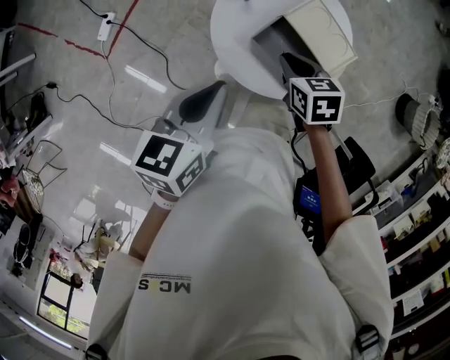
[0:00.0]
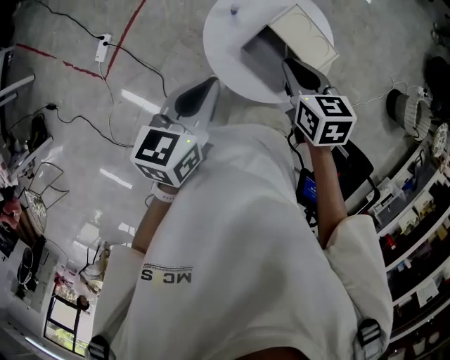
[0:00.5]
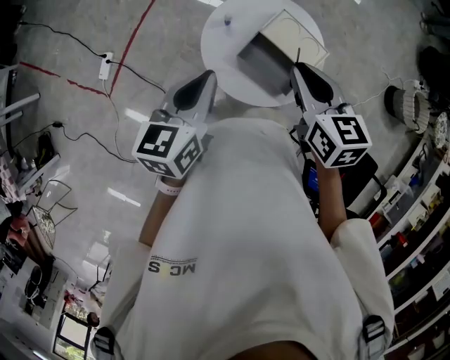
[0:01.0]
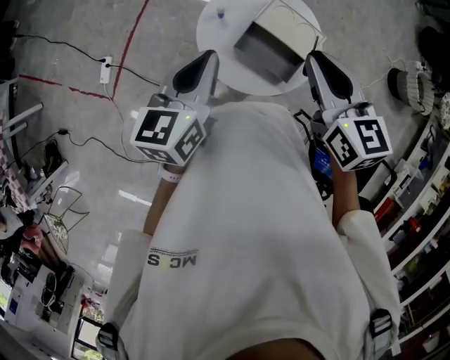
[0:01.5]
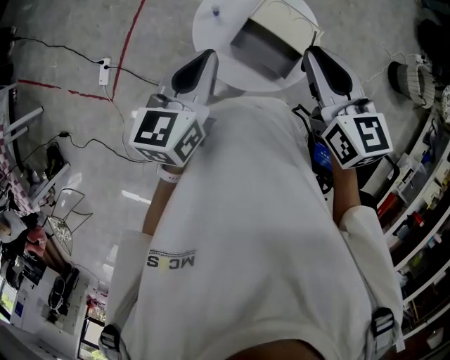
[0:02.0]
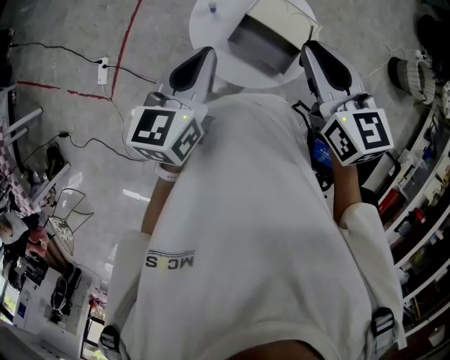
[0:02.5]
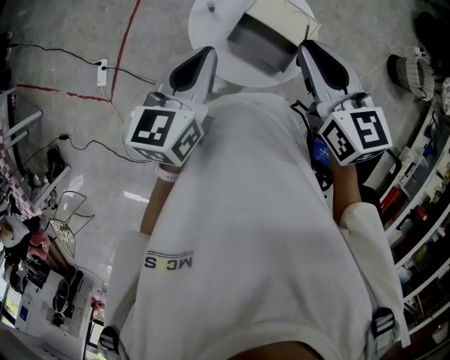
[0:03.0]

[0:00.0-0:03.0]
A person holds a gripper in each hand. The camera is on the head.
0:00.0 to 0:01.5: The left gripper shifts some 10 cm upward, while the right gripper travels upward by approximately 25 cm, and rotates some 30 degrees.
0:01.5 to 0:03.0: The grippers move only a little.

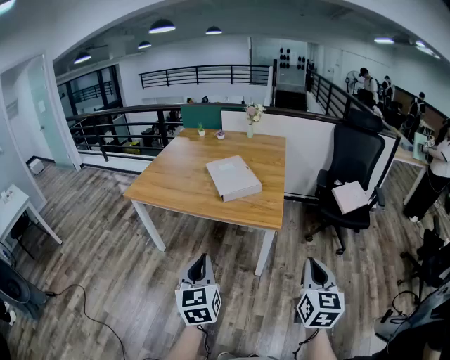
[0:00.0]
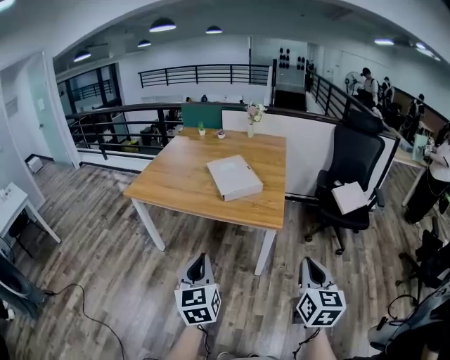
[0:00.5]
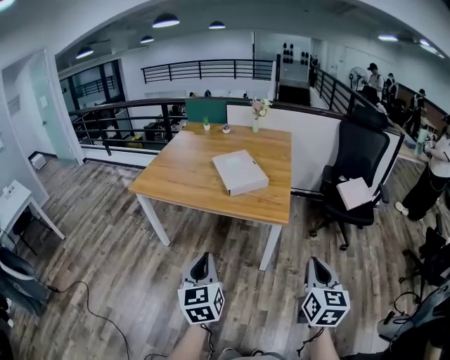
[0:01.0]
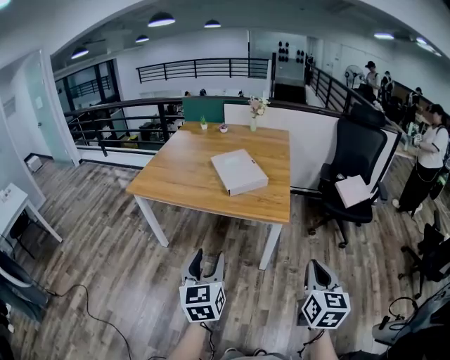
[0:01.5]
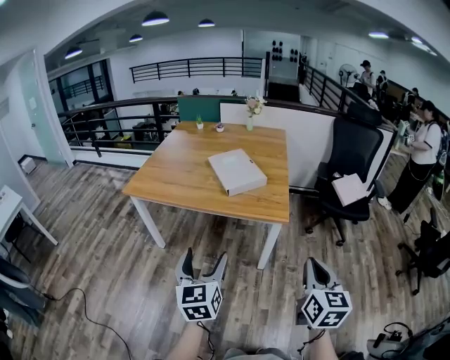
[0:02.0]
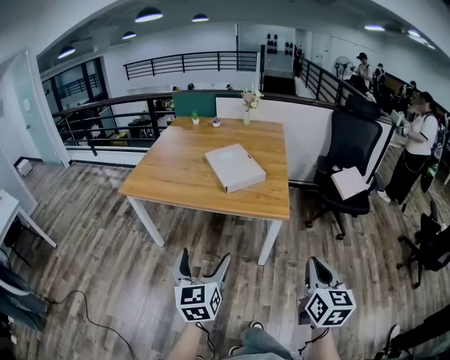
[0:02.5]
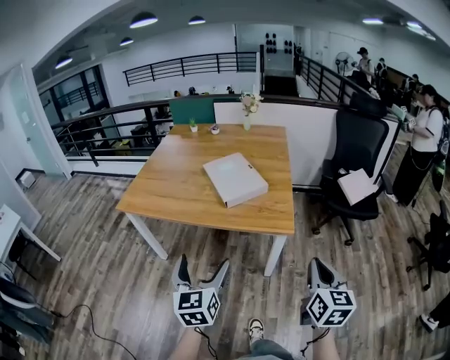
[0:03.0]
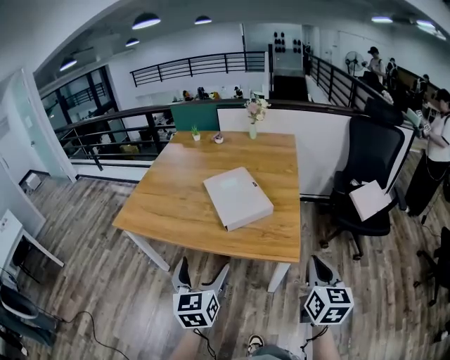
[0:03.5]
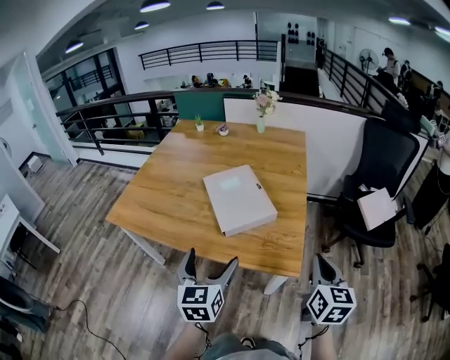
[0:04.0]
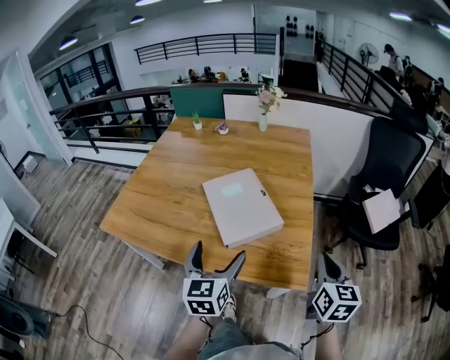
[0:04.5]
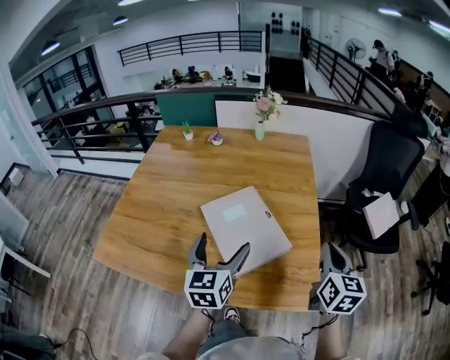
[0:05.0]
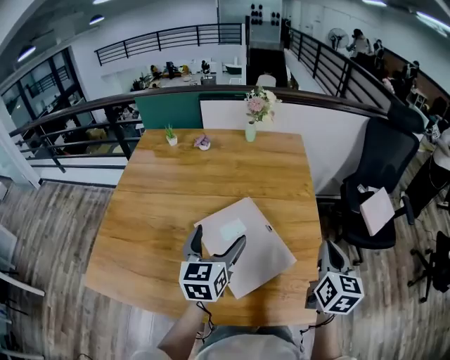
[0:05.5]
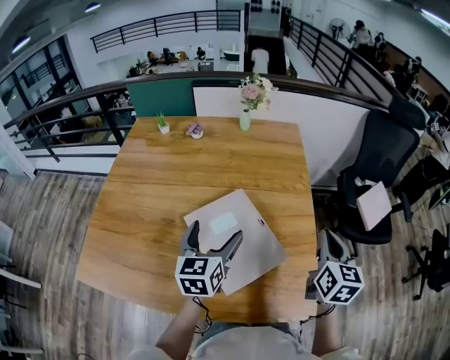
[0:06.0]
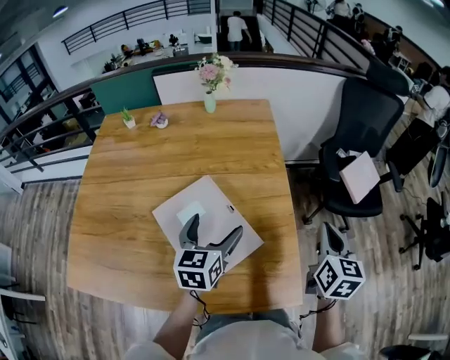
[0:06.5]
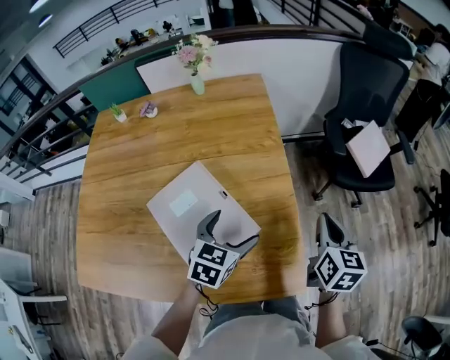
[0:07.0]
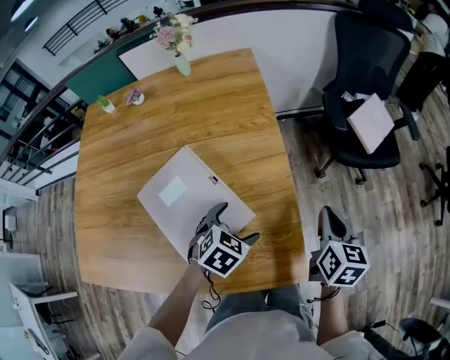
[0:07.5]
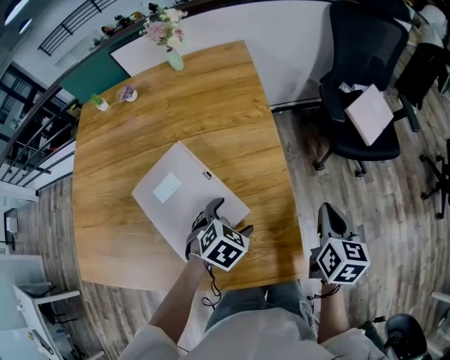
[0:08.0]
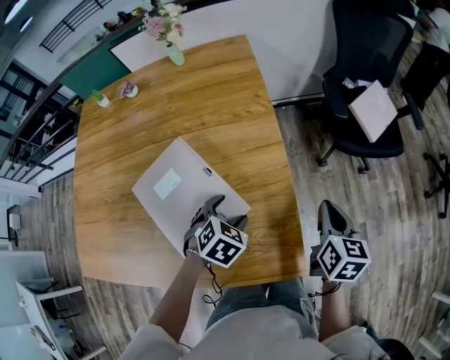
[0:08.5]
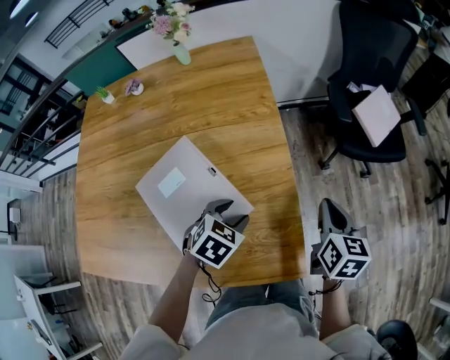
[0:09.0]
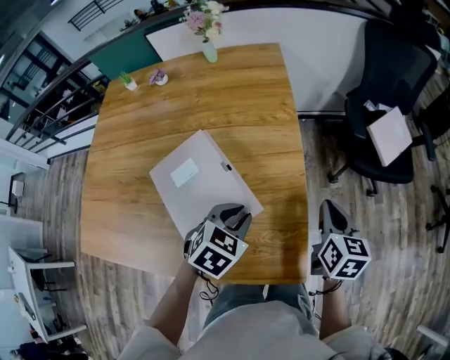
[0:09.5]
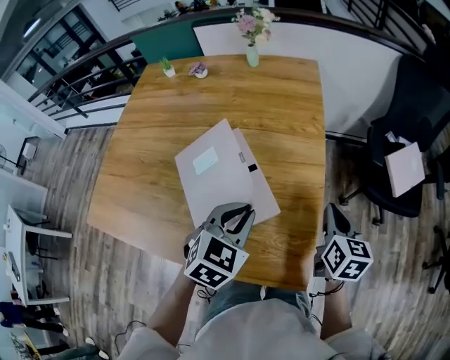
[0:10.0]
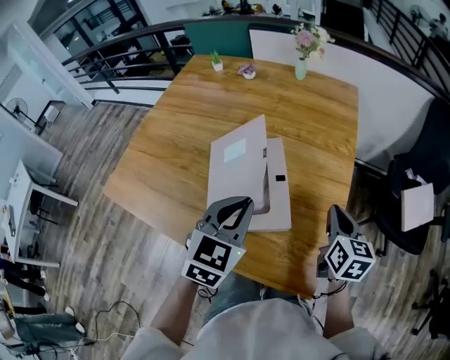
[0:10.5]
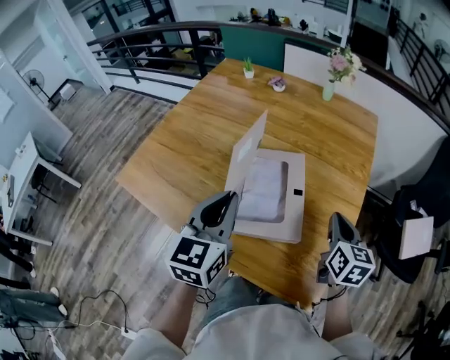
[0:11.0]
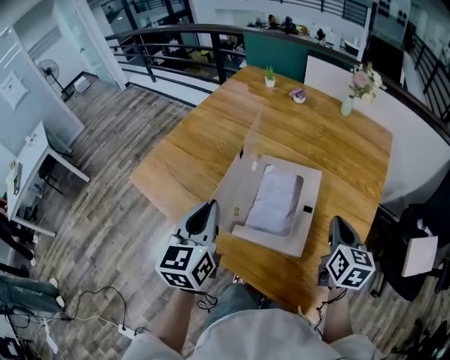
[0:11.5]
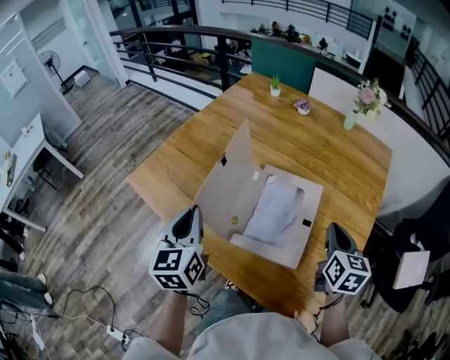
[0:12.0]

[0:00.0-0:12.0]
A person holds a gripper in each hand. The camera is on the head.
0:00.0 to 0:02.0: The two grippers go roughly 5 cm to the left. The left gripper opens up.
0:02.0 to 0:04.0: The grippers both shift forward by approximately 35 cm.
0:04.0 to 0:06.0: Both grippers travel together forward, about 30 cm.
0:06.0 to 0:08.0: The grippers both shift to the right and downward by about 25 cm. The left gripper tilts its fingers approximately 50 degrees downward.
0:08.0 to 0:10.0: The left gripper travels upward by about 15 cm, turns by approximately 30 degrees, and closes up; the right gripper shifts roughly 10 cm to the left.
0:10.0 to 0:12.0: The right gripper ends up roughly 25 cm from where it was, and swivels about 20 degrees; the left gripper ends up approximately 35 cm from where it was, and swivels some 70 degrees.

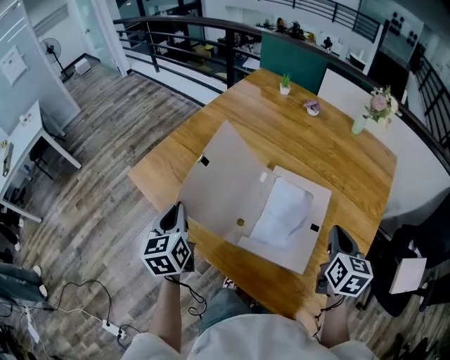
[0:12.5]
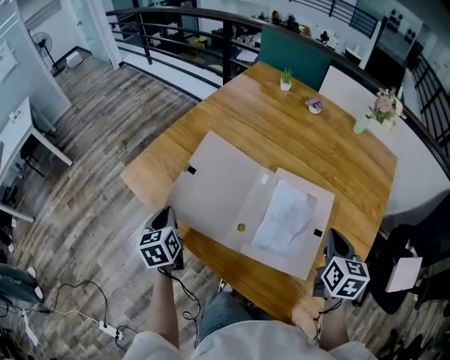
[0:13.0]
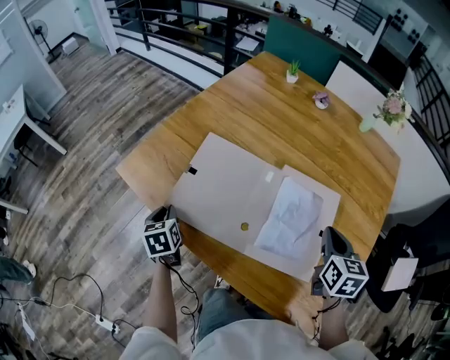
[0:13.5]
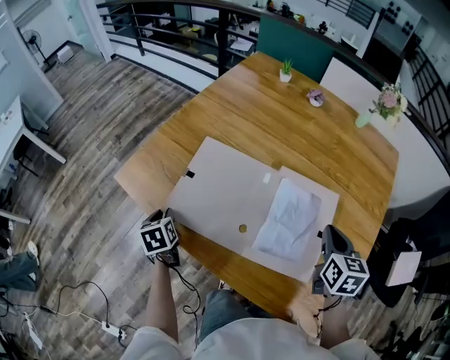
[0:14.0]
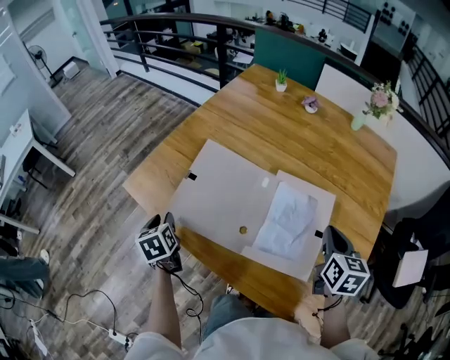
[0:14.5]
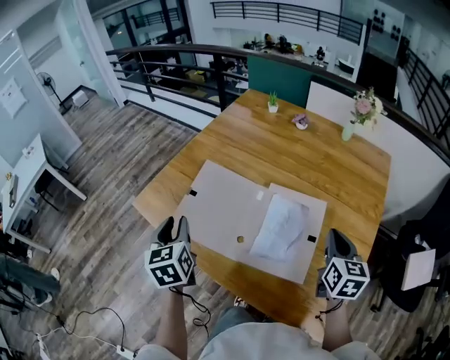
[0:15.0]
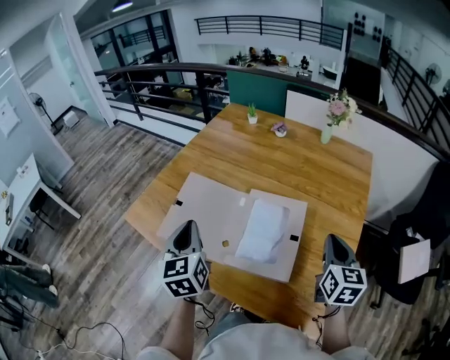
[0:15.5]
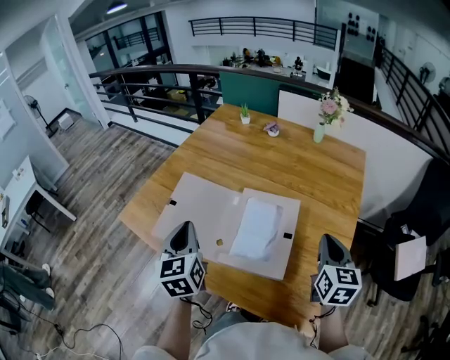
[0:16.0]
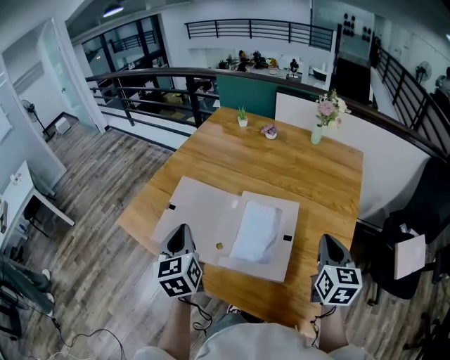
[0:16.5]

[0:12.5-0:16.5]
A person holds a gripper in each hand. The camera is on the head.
0:12.5 to 0:14.5: The left gripper travels downward and to the left by approximately 15 cm, and rotates roughly 20 degrees.
0:14.5 to 0:16.5: The right gripper is displaced to the right, backward and upward by approximately 15 cm, while the left gripper is displaced to the right and upward by approximately 25 cm, and swivels some 30 degrees.

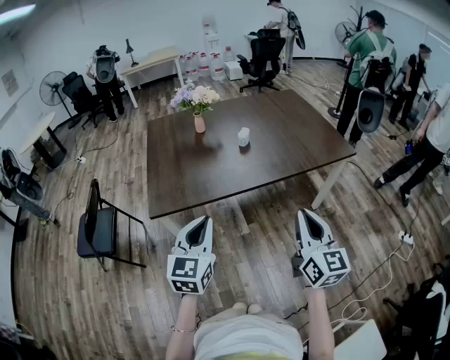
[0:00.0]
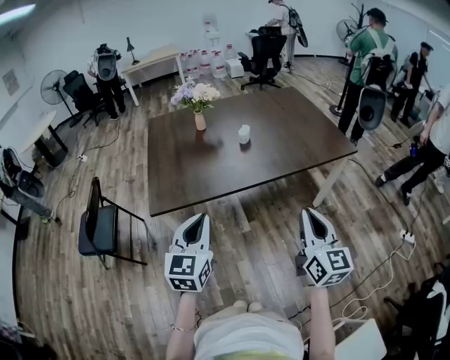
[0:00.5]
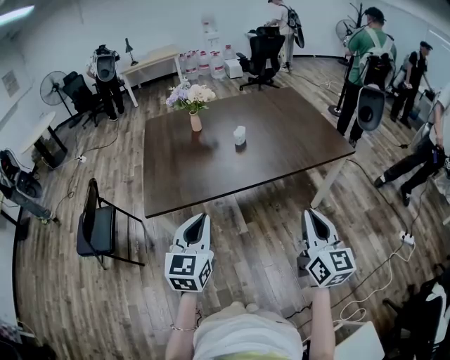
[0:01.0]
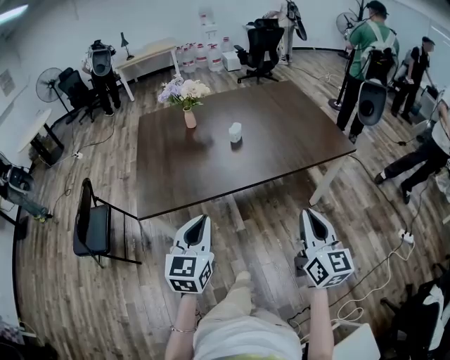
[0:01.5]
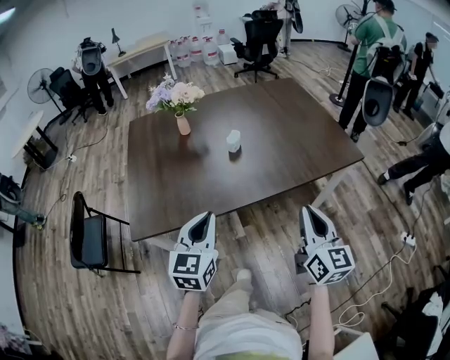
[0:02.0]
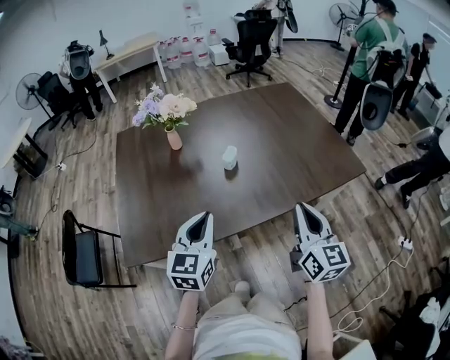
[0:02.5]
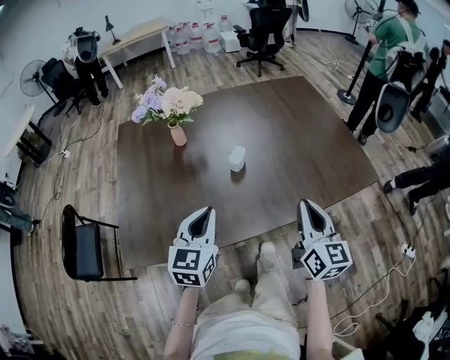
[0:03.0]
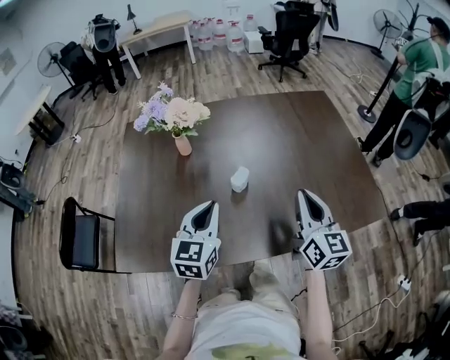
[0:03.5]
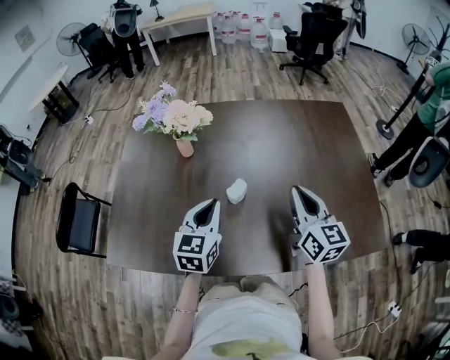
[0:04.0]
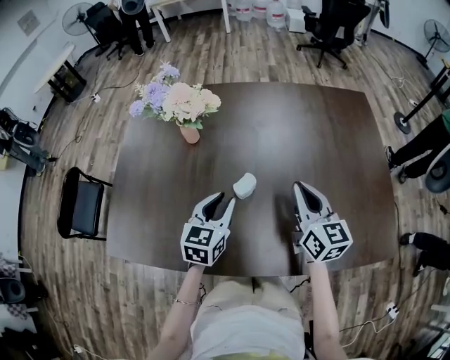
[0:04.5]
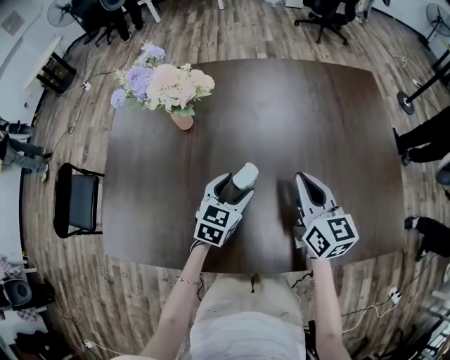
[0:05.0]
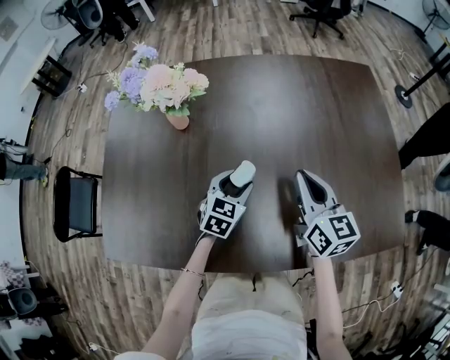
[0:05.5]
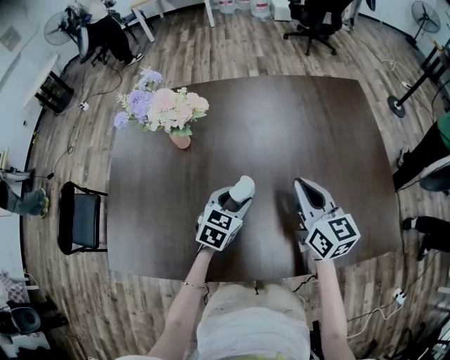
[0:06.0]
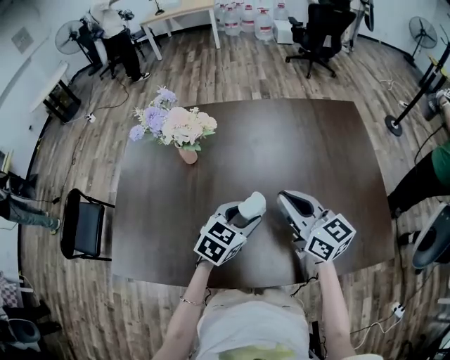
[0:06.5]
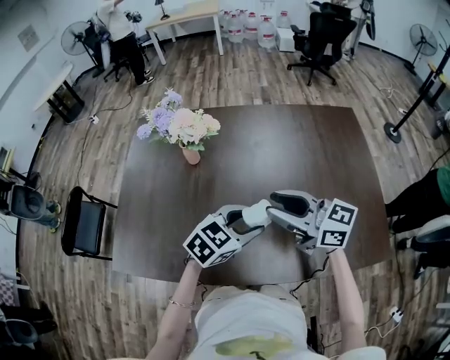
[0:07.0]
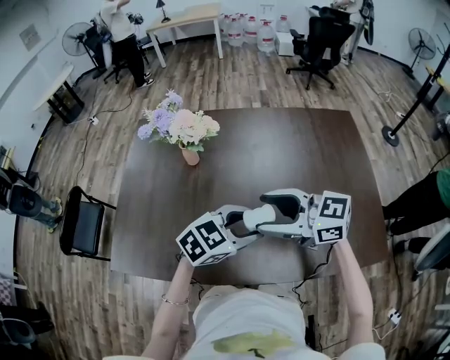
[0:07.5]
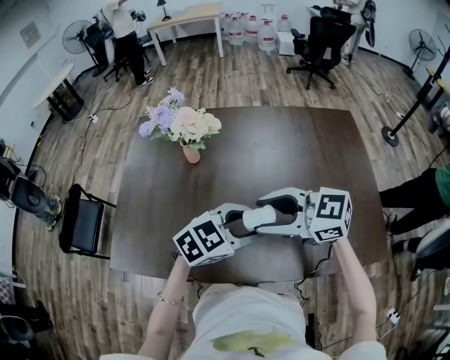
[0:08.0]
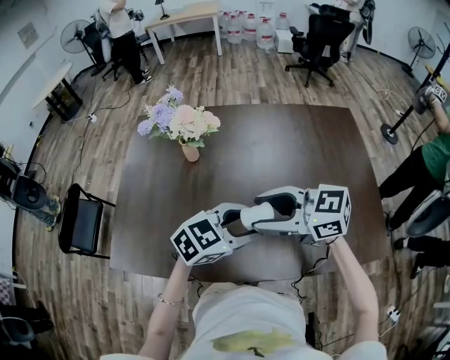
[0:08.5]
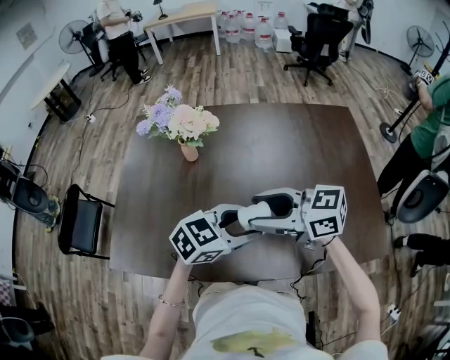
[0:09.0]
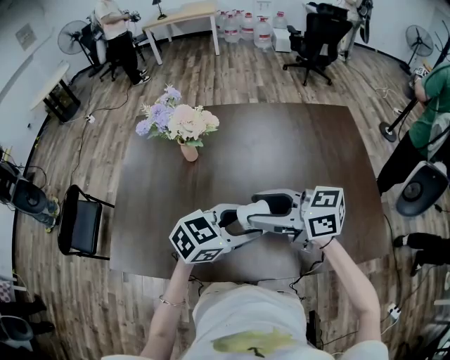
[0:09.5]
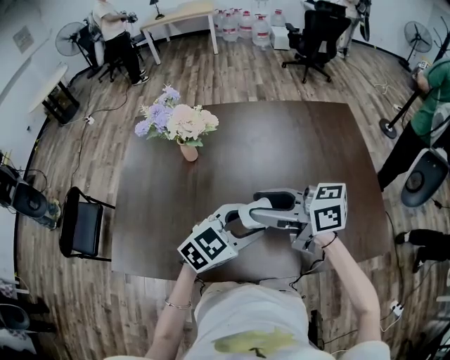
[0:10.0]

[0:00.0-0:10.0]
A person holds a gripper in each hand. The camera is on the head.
0:00.0 to 0:02.0: Both grippers move forward, approximately 15 cm.
0:02.0 to 0:04.0: The two grippers go about 35 cm forward. The right gripper rotates approximately 20 degrees.
0:04.0 to 0:06.0: The left gripper heads downward, forward and to the right, covering roughly 15 cm, changes its angle by some 30 degrees, and opens, while the right gripper travels forward by some 5 cm.
0:06.0 to 0:08.0: The right gripper ends up roughly 20 cm from where it was, turns by roughly 60 degrees, and opens up. Meanwhile the left gripper is displaced upward by approximately 15 cm, and swivels approximately 30 degrees.
0:08.0 to 0:10.0: The right gripper turns by approximately 30 degrees.
